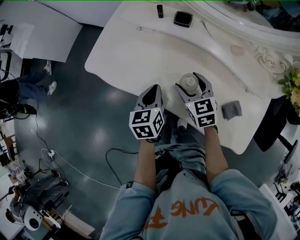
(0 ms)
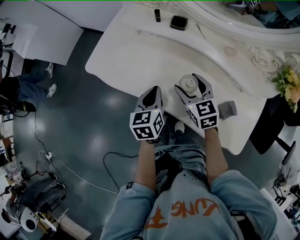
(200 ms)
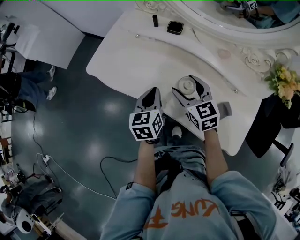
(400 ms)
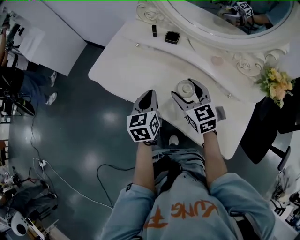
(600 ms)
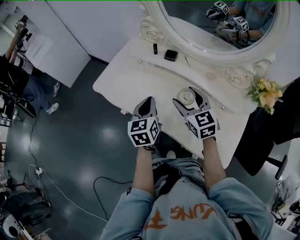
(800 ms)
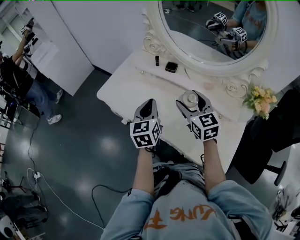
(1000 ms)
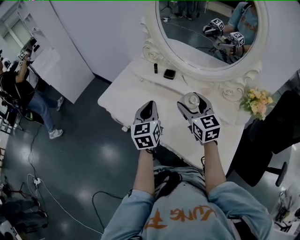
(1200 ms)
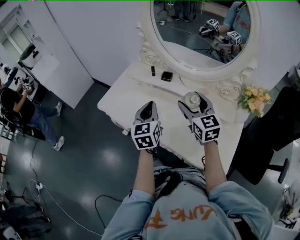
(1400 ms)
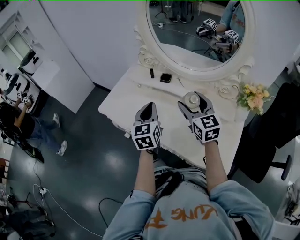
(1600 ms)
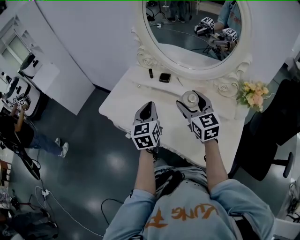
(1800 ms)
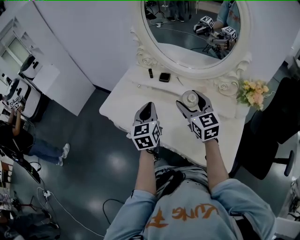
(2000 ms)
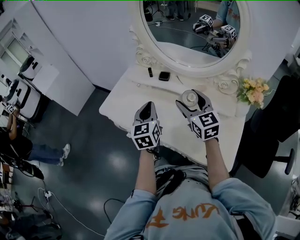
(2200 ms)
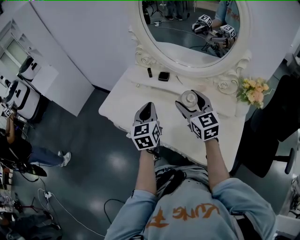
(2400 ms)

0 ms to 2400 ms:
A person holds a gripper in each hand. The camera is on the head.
0 ms to 1200 ms: Both grippers move upward, about 20 cm. The right gripper turns by roughly 20 degrees. The left gripper turns by about 20 degrees.
1200 ms to 2400 ms: The grippers move only a little.

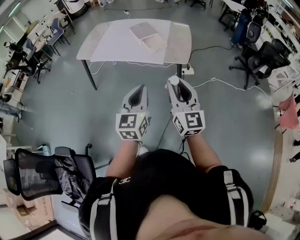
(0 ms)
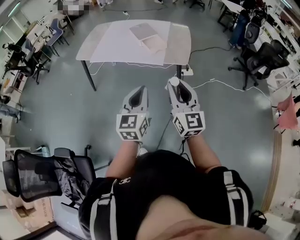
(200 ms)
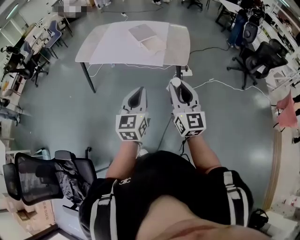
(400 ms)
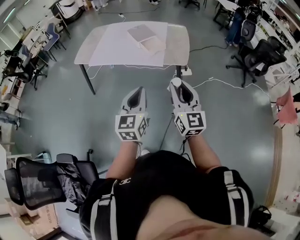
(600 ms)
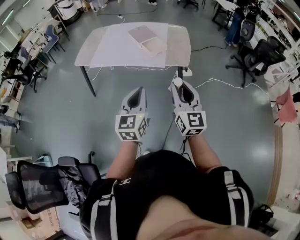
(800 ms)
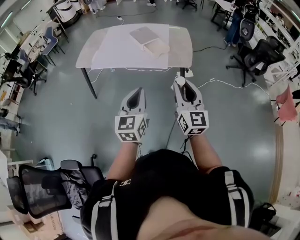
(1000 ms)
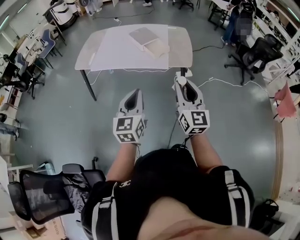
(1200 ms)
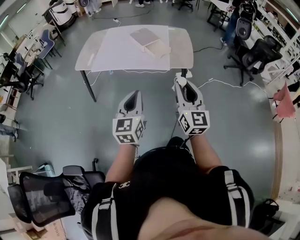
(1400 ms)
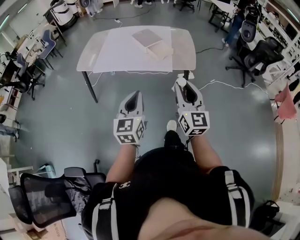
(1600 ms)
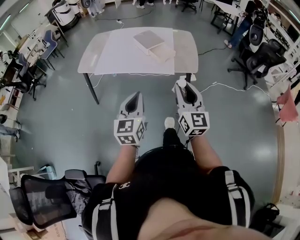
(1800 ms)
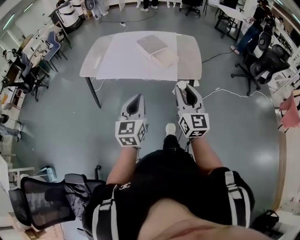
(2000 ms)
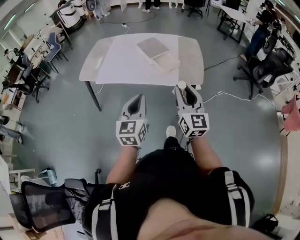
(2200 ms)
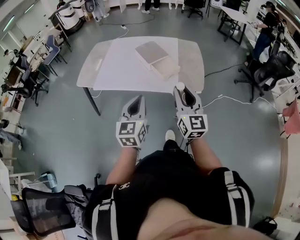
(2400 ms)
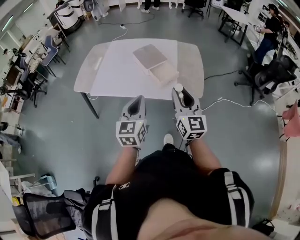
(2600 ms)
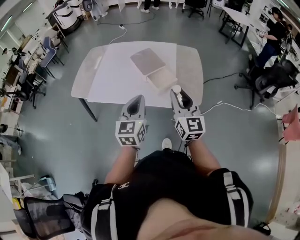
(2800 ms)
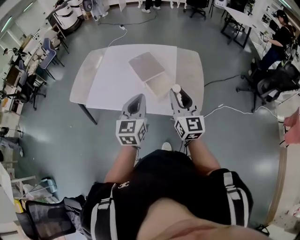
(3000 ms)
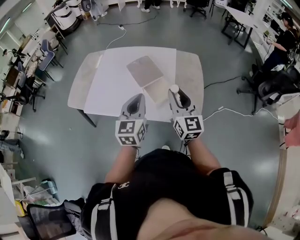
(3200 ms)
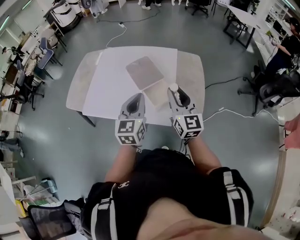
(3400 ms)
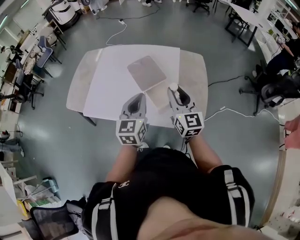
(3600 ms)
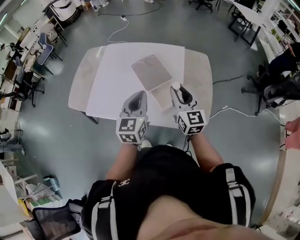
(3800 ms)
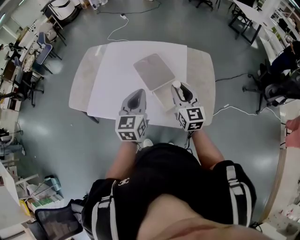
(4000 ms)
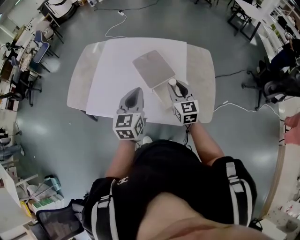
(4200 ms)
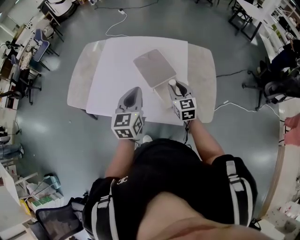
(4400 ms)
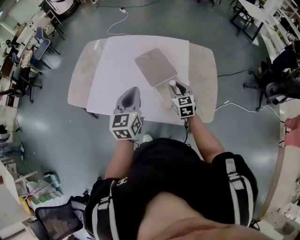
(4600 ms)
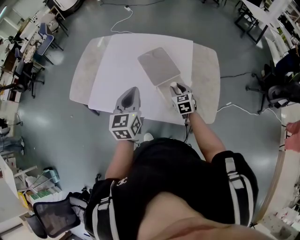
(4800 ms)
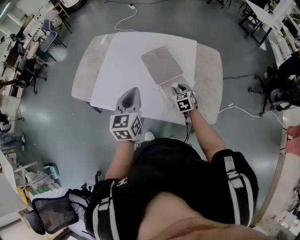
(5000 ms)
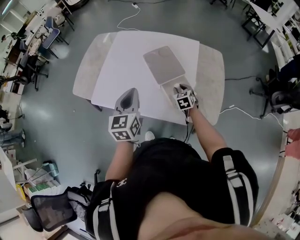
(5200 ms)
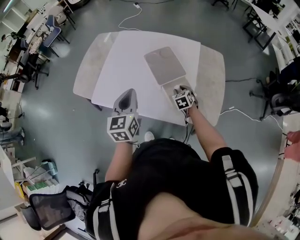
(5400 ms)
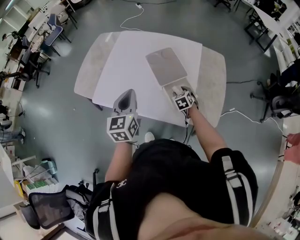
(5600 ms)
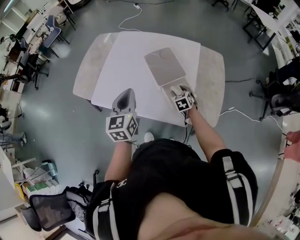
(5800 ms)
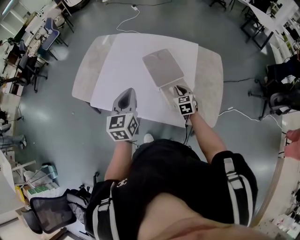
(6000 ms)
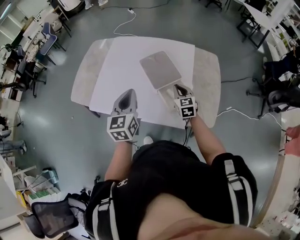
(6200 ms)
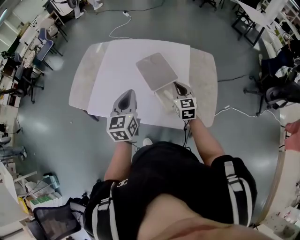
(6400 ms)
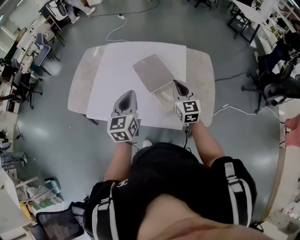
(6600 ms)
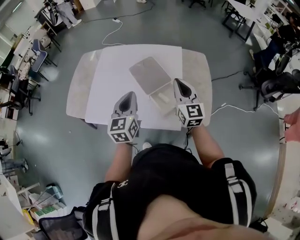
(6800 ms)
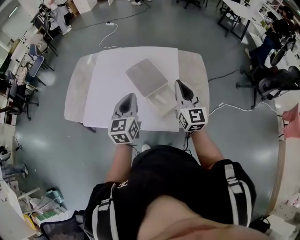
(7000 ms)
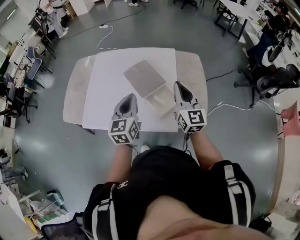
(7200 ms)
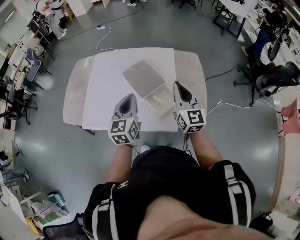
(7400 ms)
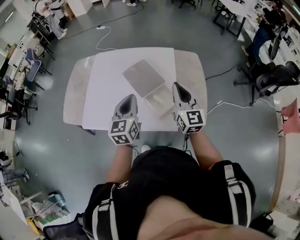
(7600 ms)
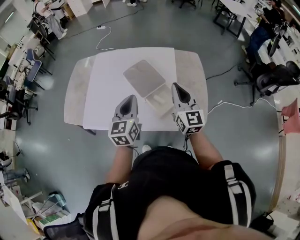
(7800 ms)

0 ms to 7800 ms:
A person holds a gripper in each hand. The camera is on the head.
0 ms to 1600 ms: The right gripper travels to the left and forward by about 10 cm. The left gripper travels to the left by about 15 cm.
1600 ms to 3200 ms: The pair of grippers is taken forward, about 40 cm.
3200 ms to 4600 ms: The left gripper goes approximately 15 cm forward and to the left. The right gripper goes roughly 25 cm downward and forward, and swivels some 30 degrees.
4600 ms to 6200 ms: The right gripper moves approximately 15 cm downward and comes back, and closes up.
6200 ms to 7800 ms: The left gripper goes some 5 cm to the right; the right gripper is displaced upward by approximately 20 cm, and rotates about 30 degrees.

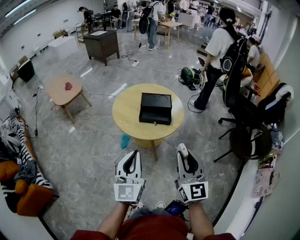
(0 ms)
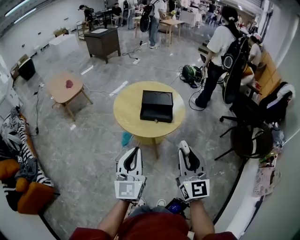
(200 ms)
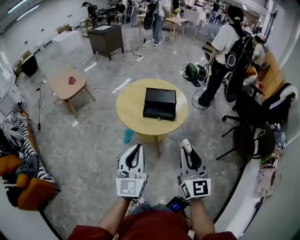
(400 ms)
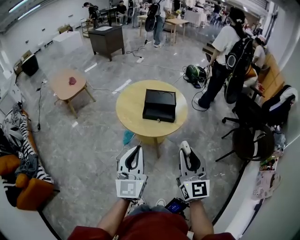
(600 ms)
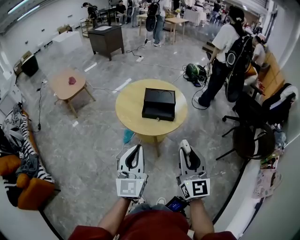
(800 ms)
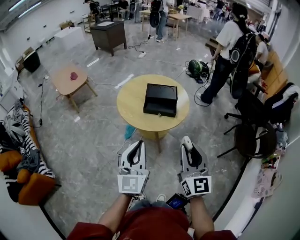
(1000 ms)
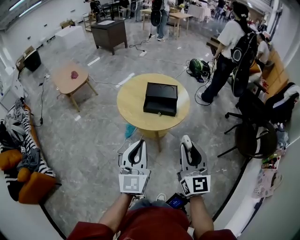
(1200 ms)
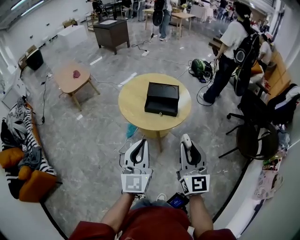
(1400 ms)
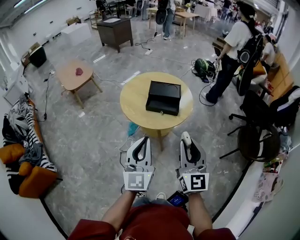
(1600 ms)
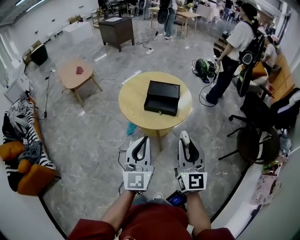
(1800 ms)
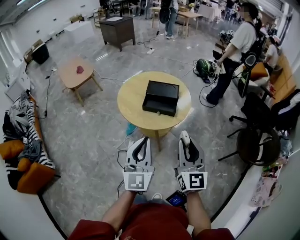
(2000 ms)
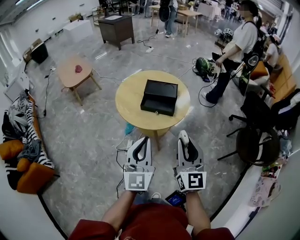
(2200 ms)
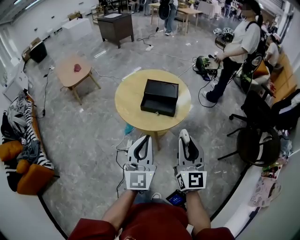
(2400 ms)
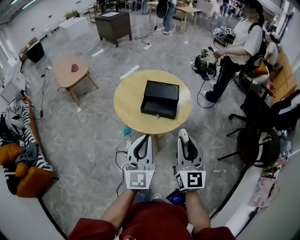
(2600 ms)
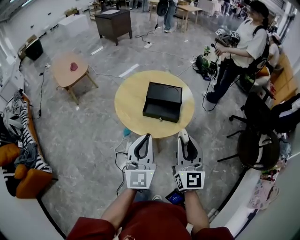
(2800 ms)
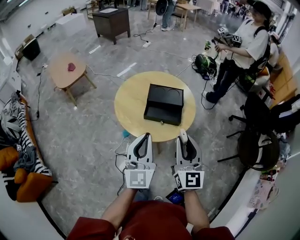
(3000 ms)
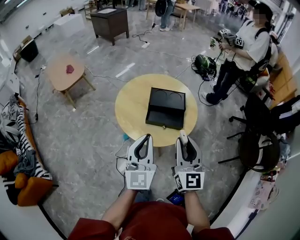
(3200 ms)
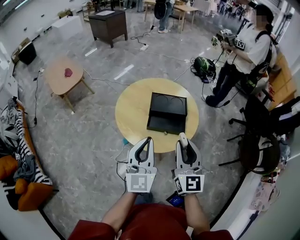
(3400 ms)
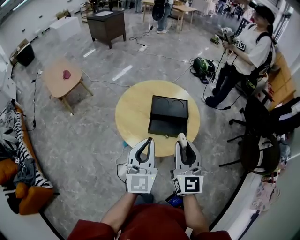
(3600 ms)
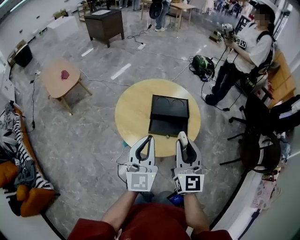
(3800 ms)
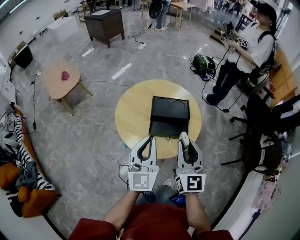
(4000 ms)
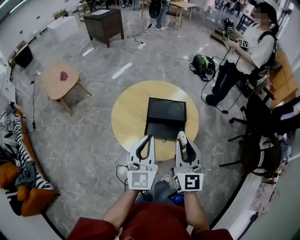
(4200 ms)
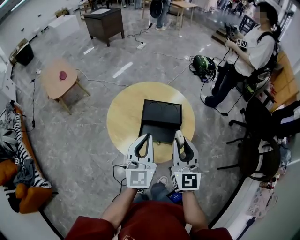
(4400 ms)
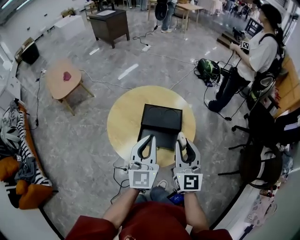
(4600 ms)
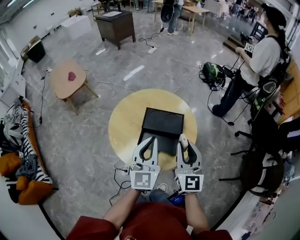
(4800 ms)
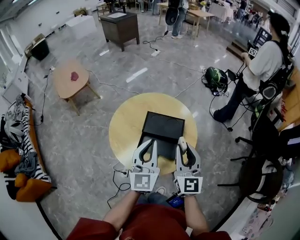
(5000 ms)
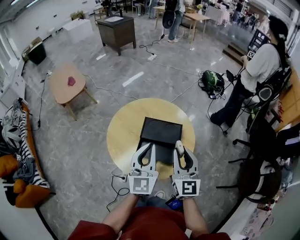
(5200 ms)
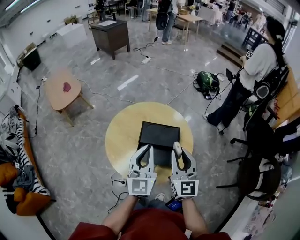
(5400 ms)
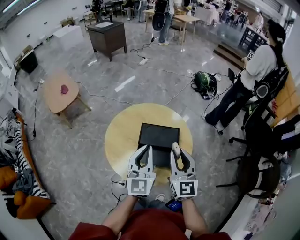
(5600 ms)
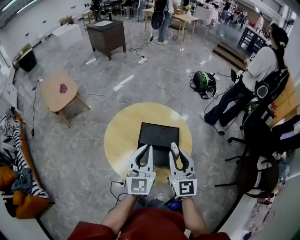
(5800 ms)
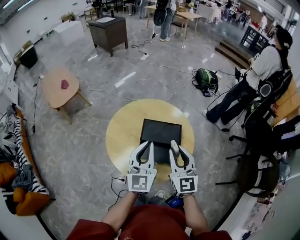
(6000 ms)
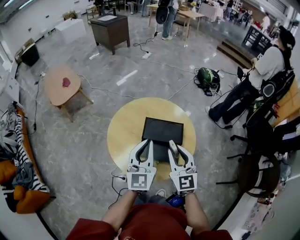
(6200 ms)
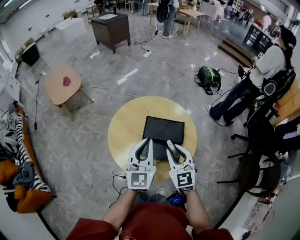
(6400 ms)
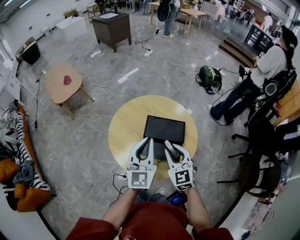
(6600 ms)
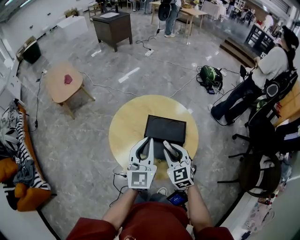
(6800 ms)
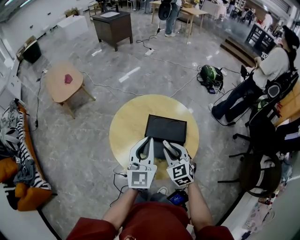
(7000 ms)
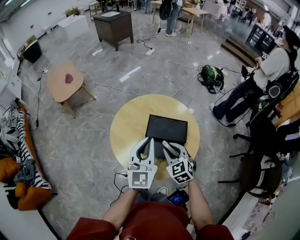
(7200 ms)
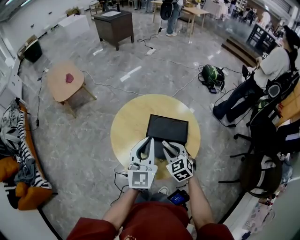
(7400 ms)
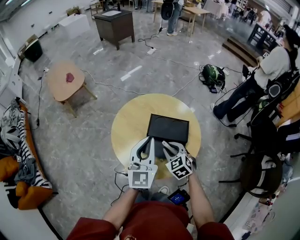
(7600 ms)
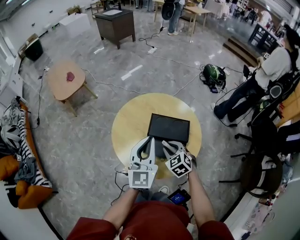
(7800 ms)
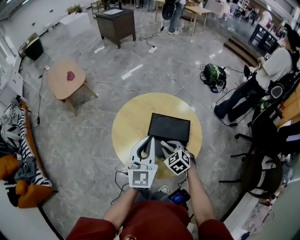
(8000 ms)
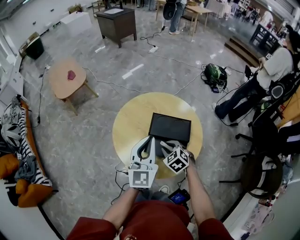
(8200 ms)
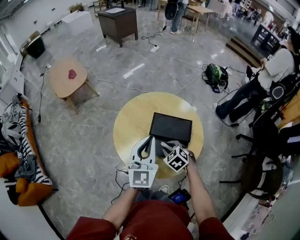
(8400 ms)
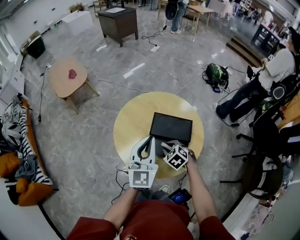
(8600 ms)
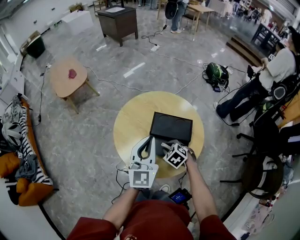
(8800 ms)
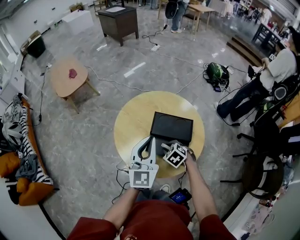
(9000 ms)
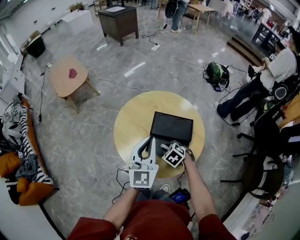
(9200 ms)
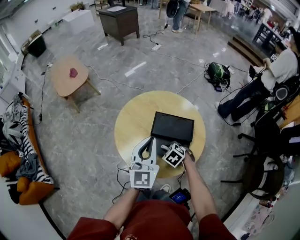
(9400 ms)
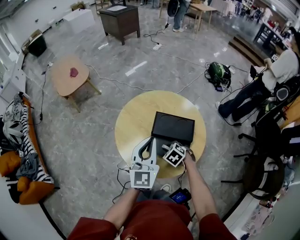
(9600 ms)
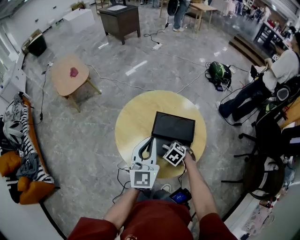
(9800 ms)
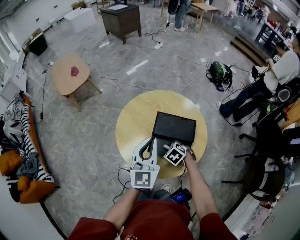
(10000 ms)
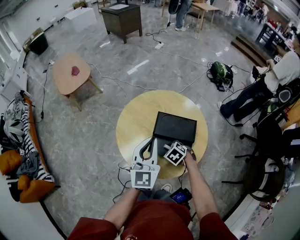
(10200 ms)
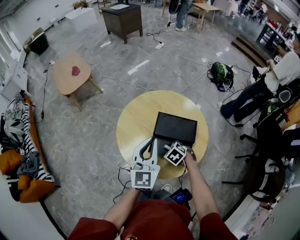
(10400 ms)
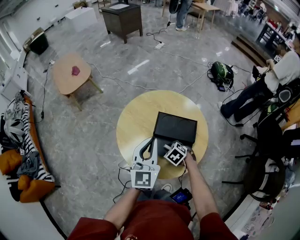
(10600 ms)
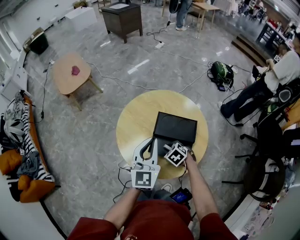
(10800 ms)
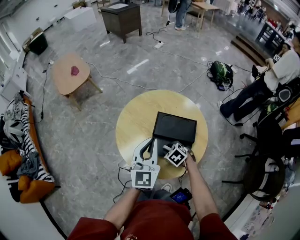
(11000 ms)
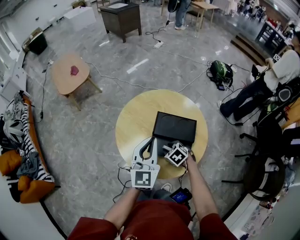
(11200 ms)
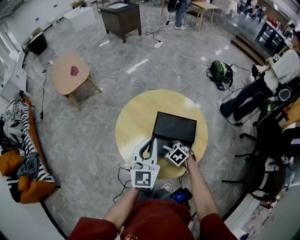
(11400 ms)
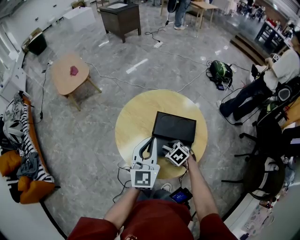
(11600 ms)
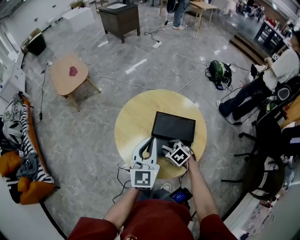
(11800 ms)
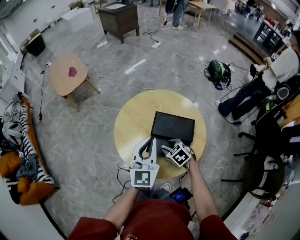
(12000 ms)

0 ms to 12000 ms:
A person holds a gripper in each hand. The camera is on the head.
0 ms to 1600 ms: The left gripper changes place by approximately 5 cm.
1600 ms to 3000 ms: The two grippers go roughly 15 cm forward.
3000 ms to 4400 ms: Both grippers move forward, approximately 15 cm.
4400 ms to 6000 ms: The grippers both shift forward by about 10 cm.
6000 ms to 7600 ms: The right gripper is displaced downward by roughly 15 cm, and angles its fingers downward, by roughly 40 degrees.
7600 ms to 9000 ms: The right gripper goes some 10 cm downward, and changes its angle by roughly 20 degrees.
9000 ms to 12000 ms: The grippers move only a little.

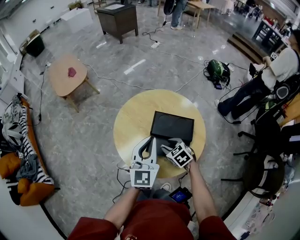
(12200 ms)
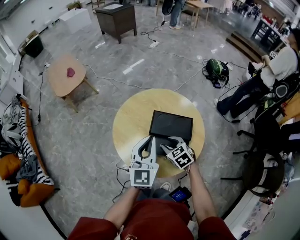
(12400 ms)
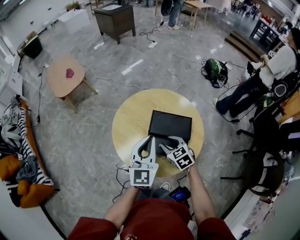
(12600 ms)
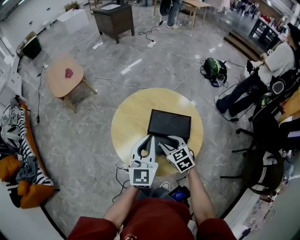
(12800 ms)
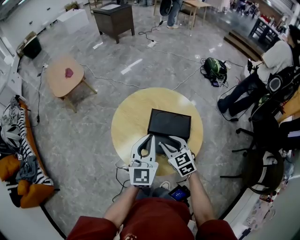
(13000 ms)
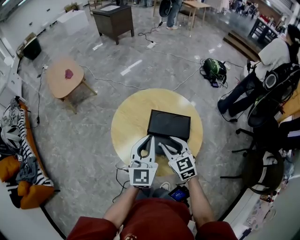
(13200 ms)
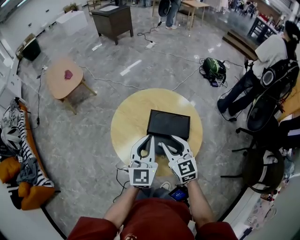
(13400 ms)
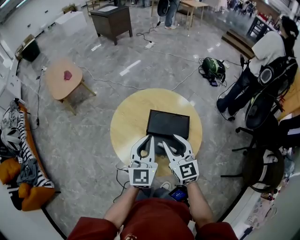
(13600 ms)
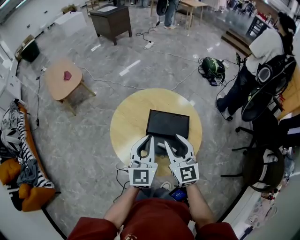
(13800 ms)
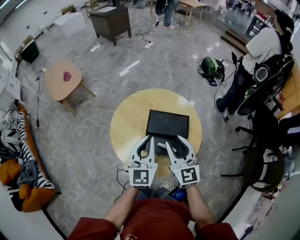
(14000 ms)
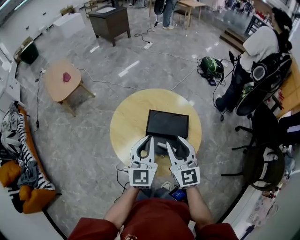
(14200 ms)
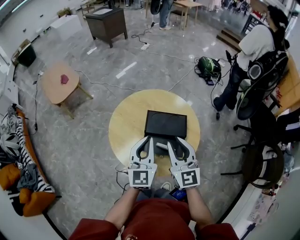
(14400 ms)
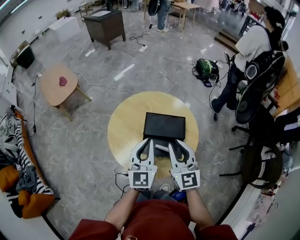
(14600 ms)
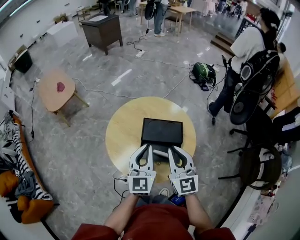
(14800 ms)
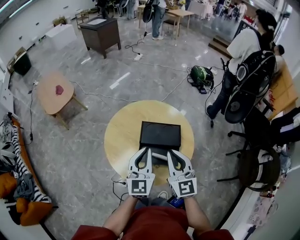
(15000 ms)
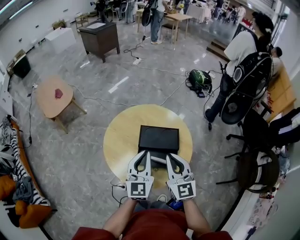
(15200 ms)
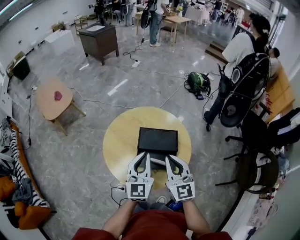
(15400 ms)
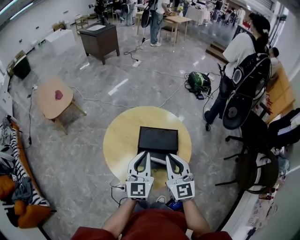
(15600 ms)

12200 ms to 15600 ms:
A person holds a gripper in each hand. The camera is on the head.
12200 ms to 13800 ms: The right gripper heads upward, covering about 20 cm, and tilts its fingers roughly 50 degrees upward.
13800 ms to 15600 ms: The right gripper moves about 5 cm, and closes up.
